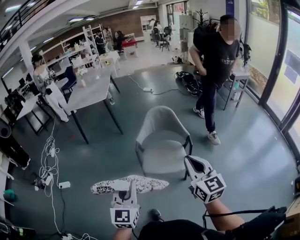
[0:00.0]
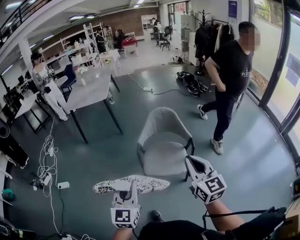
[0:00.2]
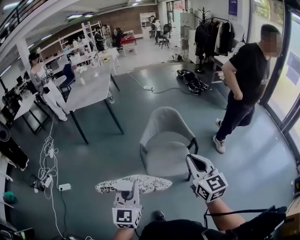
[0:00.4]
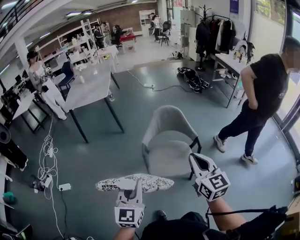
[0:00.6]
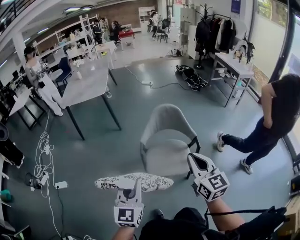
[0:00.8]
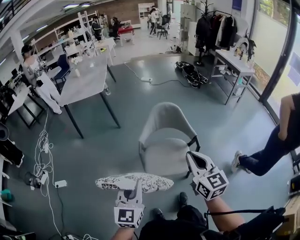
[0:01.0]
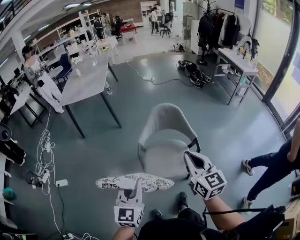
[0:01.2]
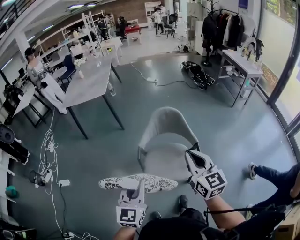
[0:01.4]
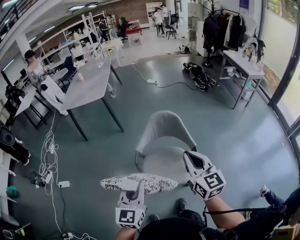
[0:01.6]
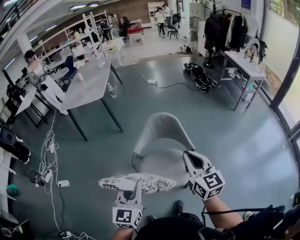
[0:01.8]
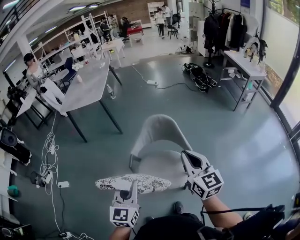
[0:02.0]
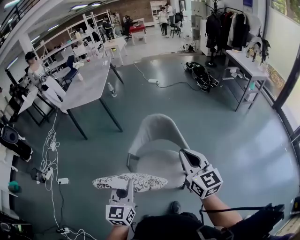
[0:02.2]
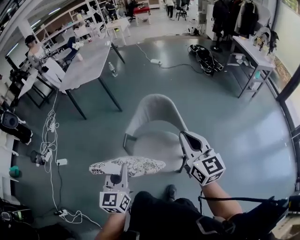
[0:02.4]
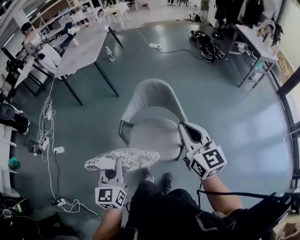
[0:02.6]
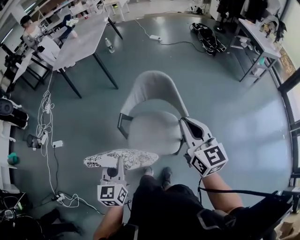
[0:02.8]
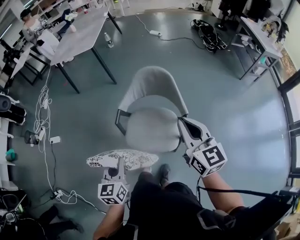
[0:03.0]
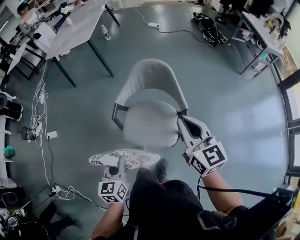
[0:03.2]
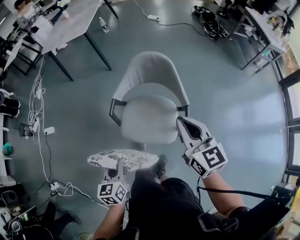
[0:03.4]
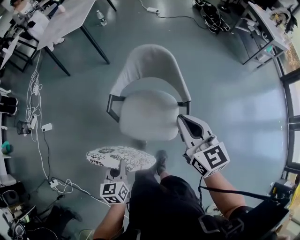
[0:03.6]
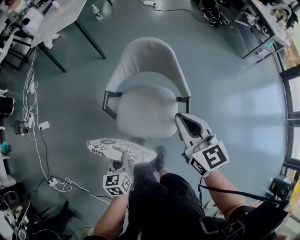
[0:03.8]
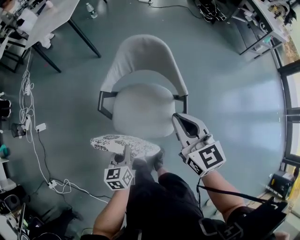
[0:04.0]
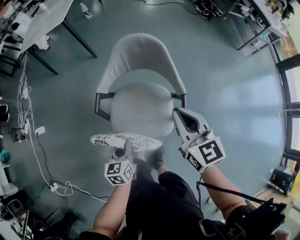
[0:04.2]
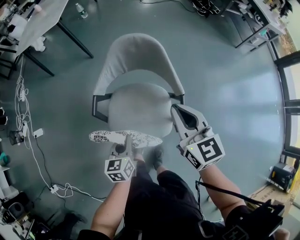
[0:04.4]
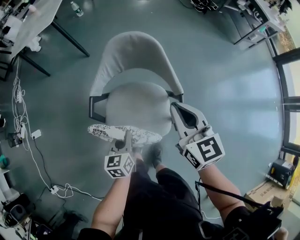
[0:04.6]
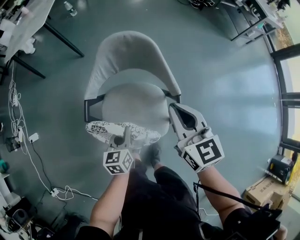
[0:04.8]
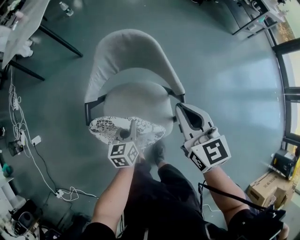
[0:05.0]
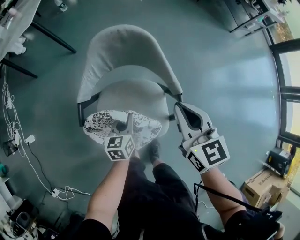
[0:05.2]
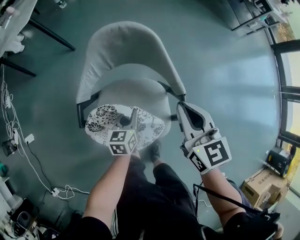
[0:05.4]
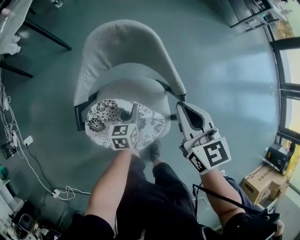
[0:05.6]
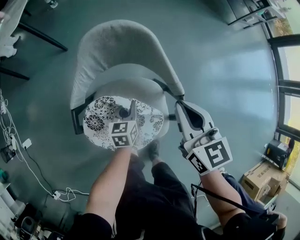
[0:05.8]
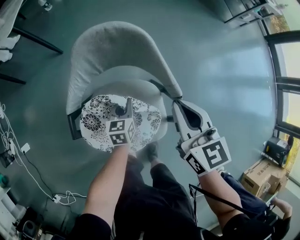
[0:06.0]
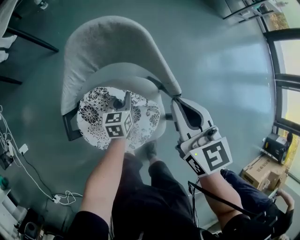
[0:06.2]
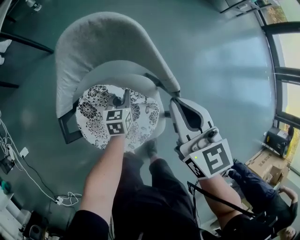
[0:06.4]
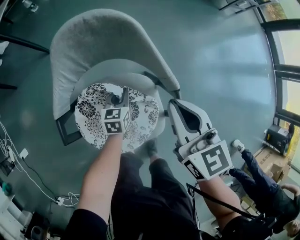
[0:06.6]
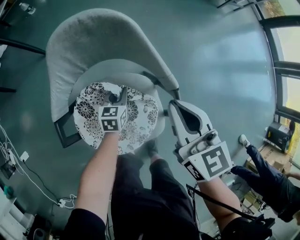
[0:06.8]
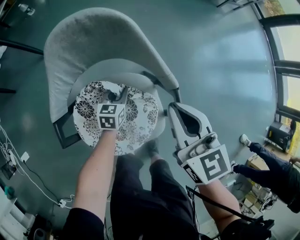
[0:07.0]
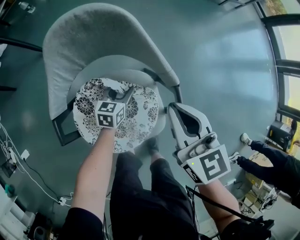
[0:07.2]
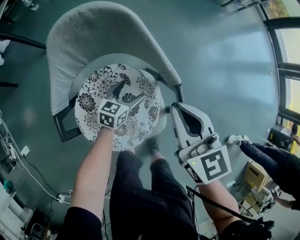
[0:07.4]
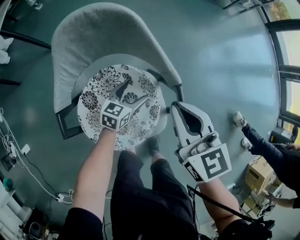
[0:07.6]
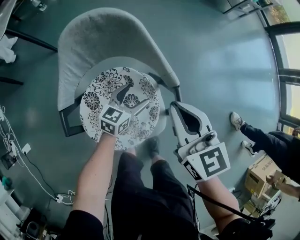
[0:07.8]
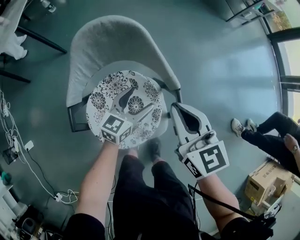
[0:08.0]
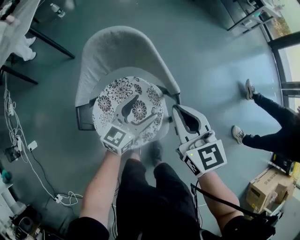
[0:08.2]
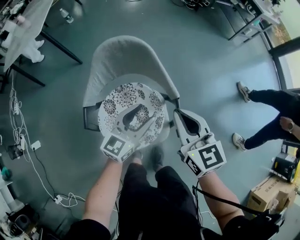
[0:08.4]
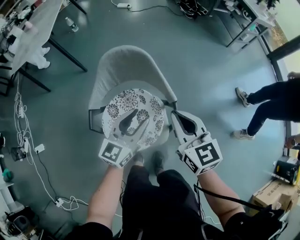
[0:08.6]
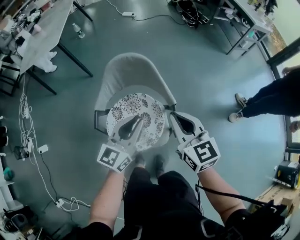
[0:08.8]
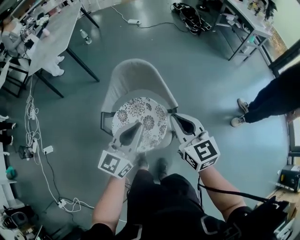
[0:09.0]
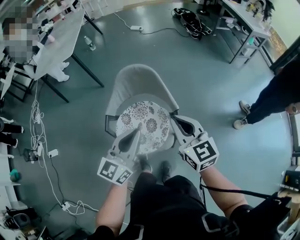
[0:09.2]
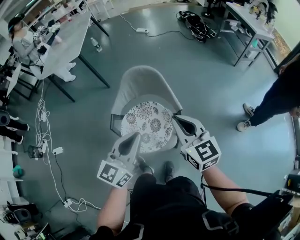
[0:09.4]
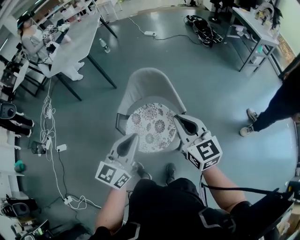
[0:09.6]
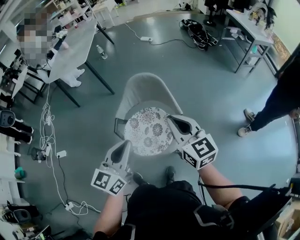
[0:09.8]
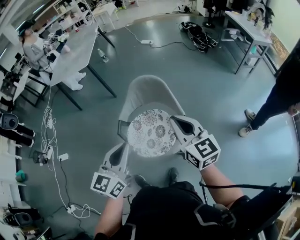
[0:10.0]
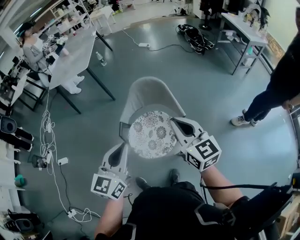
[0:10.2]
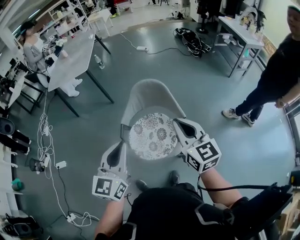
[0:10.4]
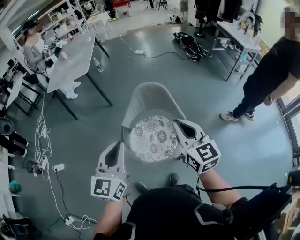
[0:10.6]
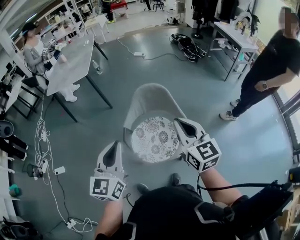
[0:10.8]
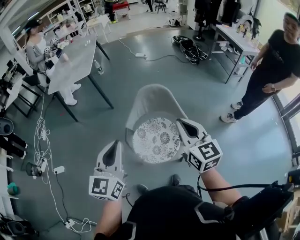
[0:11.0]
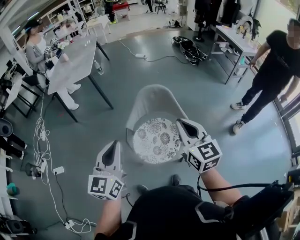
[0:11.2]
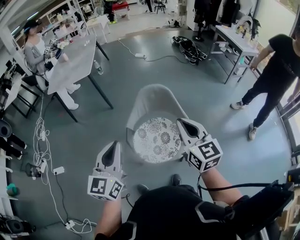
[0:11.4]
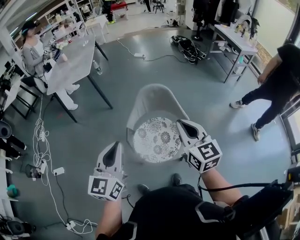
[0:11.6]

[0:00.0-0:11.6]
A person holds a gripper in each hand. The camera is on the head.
0:00.0 to 0:01.4: Both grippers move forward, approximately 15 cm.
0:01.4 to 0:02.8: The left gripper travels downward and to the right by approximately 10 cm, and turns by roughly 20 degrees; the right gripper is displaced to the right and forward by roughly 15 cm.
0:02.8 to 0:04.4: The right gripper moves downward and forward, roughly 15 cm; the left gripper shifts approximately 25 cm downward, and swivels some 20 degrees.
0:04.4 to 0:05.8: The right gripper is displaced downward and forward by some 10 cm; the left gripper shifts roughly 25 cm forward and downward.
0:05.8 to 0:07.2: The right gripper moves about 5 cm. The left gripper heads downward, covering about 10 cm, changes its angle by about 20 degrees, and opens up.
0:07.2 to 0:08.8: The left gripper shifts approximately 40 cm upward, points its fingers roughly 30 degrees further upward, and opens, then closes again, while the right gripper heads upward, covering roughly 15 cm.
0:08.8 to 0:10.2: The right gripper shifts roughly 15 cm upward and backward. Meanwhile the left gripper moves upward, backward and to the left, about 25 cm.
0:10.2 to 0:11.6: The right gripper shifts about 5 cm to the left; the left gripper travels to the left by about 10 cm.

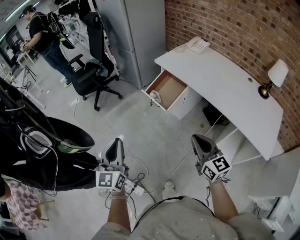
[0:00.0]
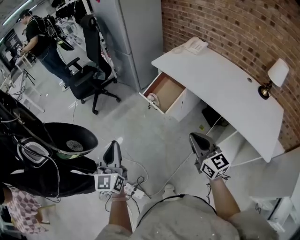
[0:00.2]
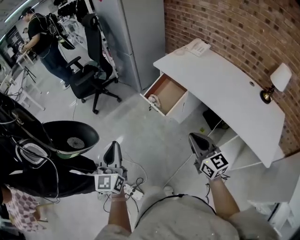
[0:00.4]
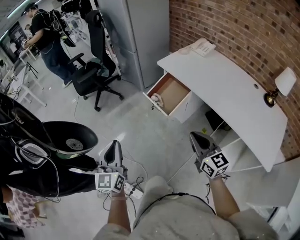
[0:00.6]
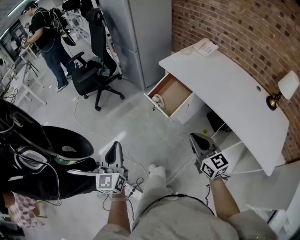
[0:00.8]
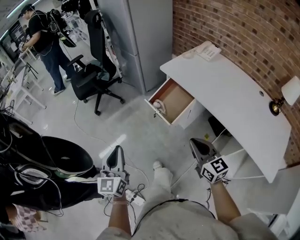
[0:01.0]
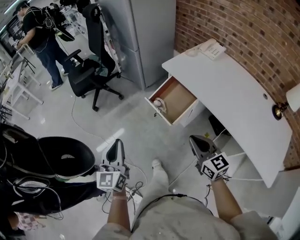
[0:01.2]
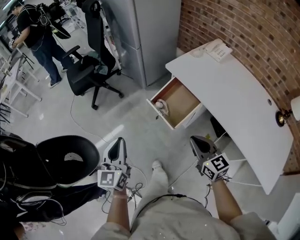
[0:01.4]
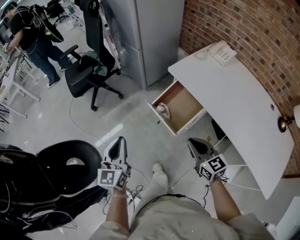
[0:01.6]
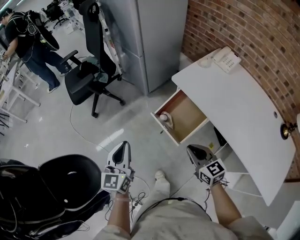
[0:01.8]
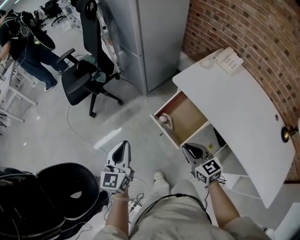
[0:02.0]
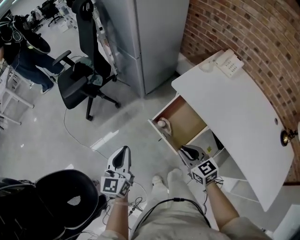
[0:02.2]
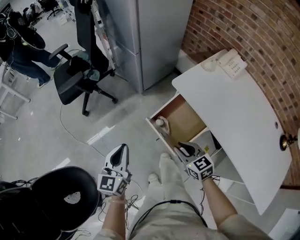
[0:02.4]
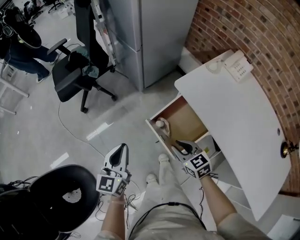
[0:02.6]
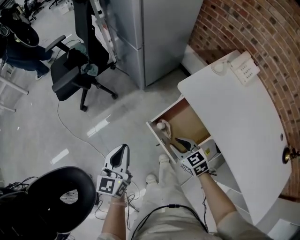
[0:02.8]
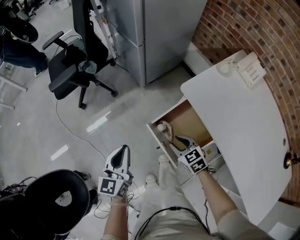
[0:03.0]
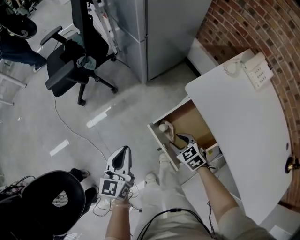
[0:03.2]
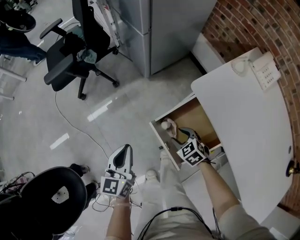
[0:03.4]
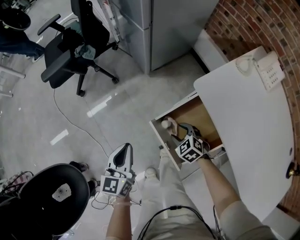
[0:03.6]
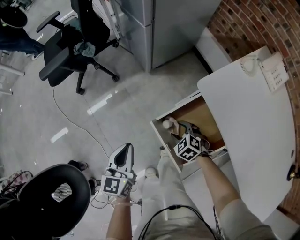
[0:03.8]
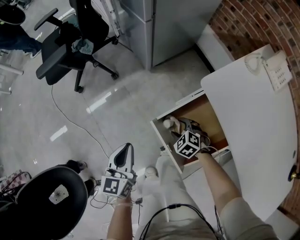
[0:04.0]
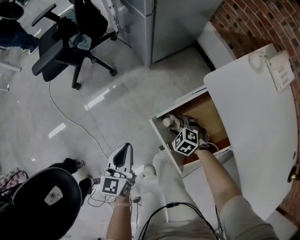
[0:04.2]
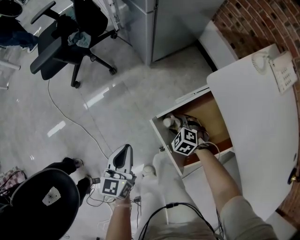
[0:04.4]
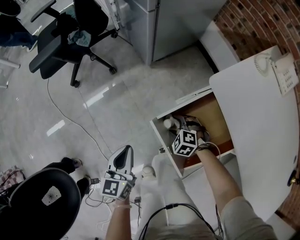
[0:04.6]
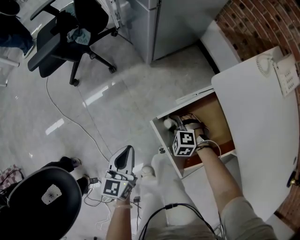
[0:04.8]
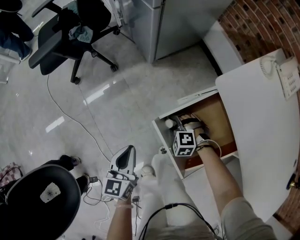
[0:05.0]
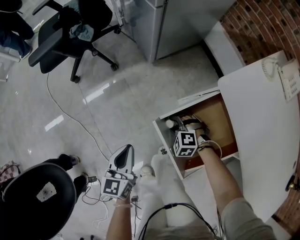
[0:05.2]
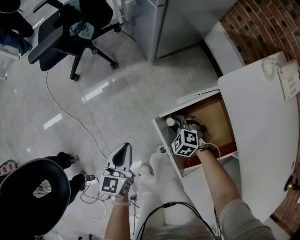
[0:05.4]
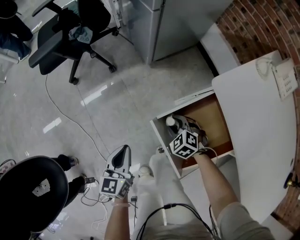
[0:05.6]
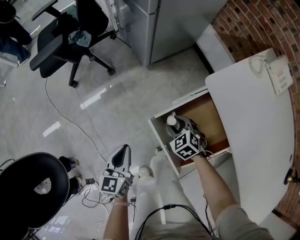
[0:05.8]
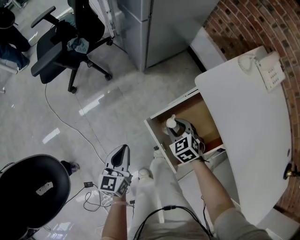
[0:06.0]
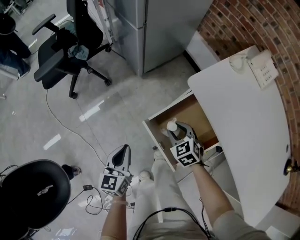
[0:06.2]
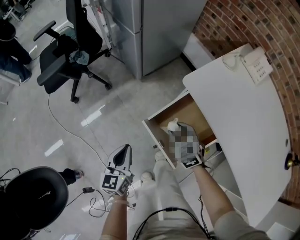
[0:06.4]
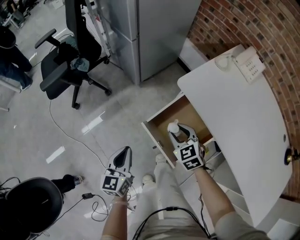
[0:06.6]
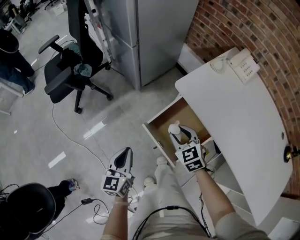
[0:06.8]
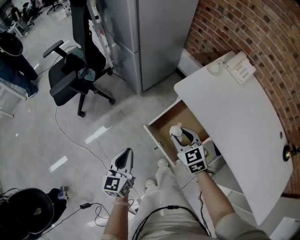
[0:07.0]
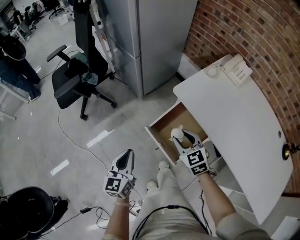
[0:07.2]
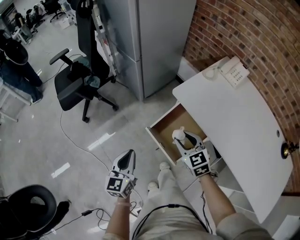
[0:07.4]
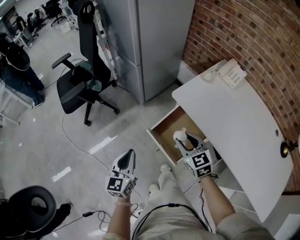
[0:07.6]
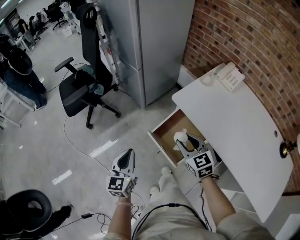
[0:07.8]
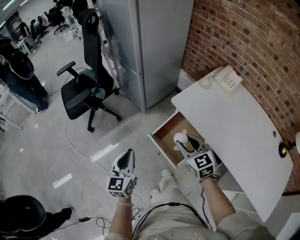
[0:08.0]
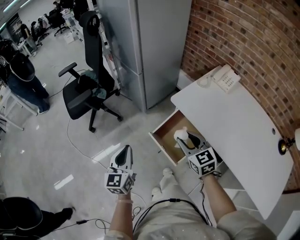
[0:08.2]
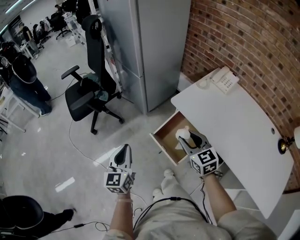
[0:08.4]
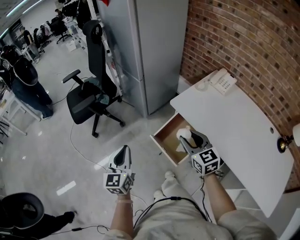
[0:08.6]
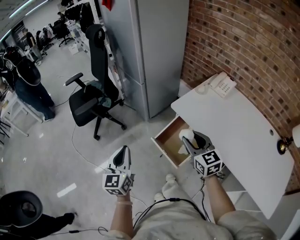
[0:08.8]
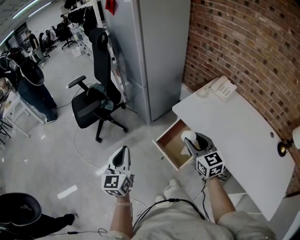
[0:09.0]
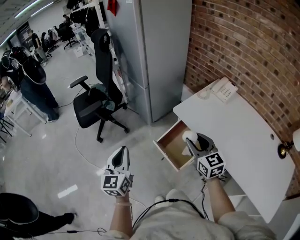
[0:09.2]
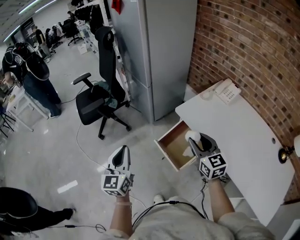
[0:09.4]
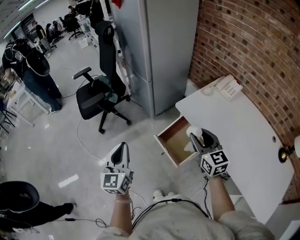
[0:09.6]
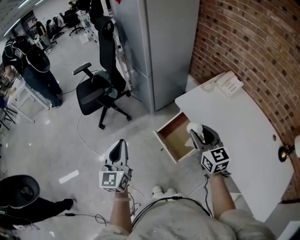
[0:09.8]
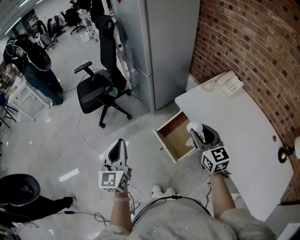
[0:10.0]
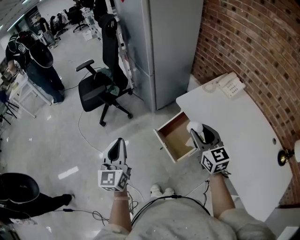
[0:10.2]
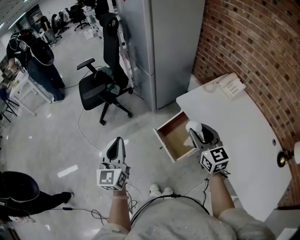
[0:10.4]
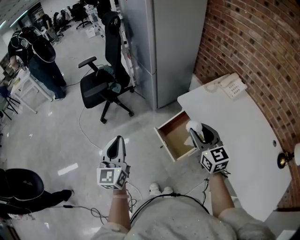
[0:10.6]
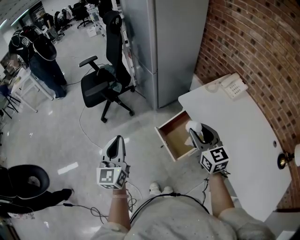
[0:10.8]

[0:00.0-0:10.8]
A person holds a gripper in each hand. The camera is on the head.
0:00.0 to 0:01.6: The grippers both shift forward by about 30 cm.
0:01.6 to 0:03.0: The grippers both shift forward and downward by some 25 cm. The right gripper rotates about 30 degrees, and opens its fingers.
0:03.0 to 0:04.6: The grippers both shift downward by some 20 cm. The right gripper twists roughly 40 degrees counterclockwise, seen from behind, and opens its fingers.
0:04.6 to 0:06.2: The right gripper travels upward by approximately 15 cm, turns by roughly 40 degrees, and closes up.
0:06.2 to 0:07.8: Both grippers travel together upward, some 20 cm. The right gripper changes its angle by approximately 30 degrees.
0:07.8 to 0:09.2: The grippers both shift upward by approximately 10 cm.
0:09.2 to 0:10.8: There are only small adjustments of the grippers.

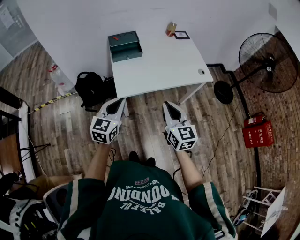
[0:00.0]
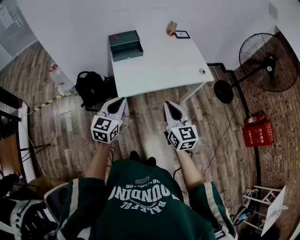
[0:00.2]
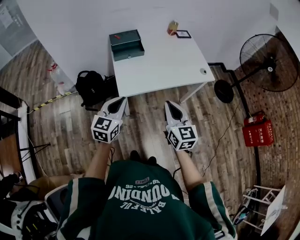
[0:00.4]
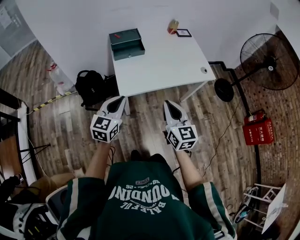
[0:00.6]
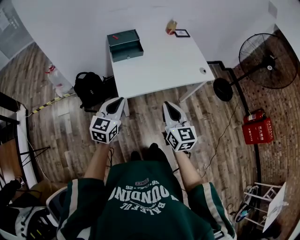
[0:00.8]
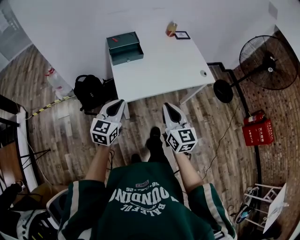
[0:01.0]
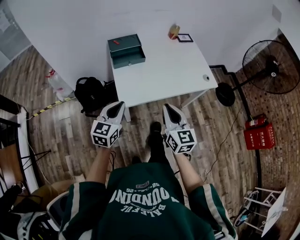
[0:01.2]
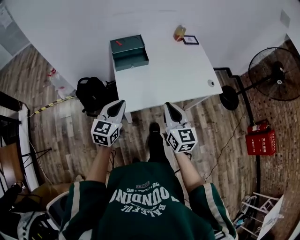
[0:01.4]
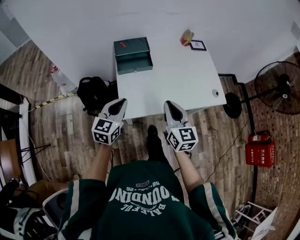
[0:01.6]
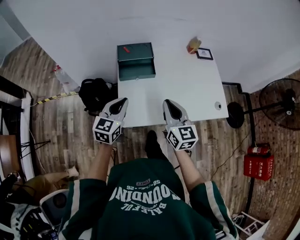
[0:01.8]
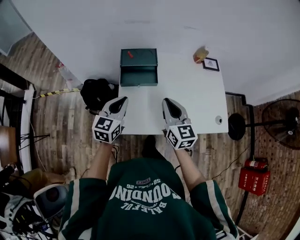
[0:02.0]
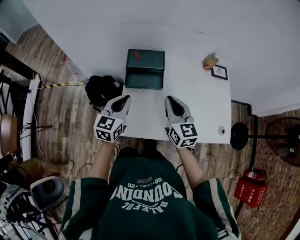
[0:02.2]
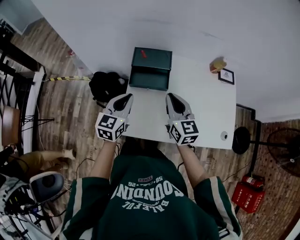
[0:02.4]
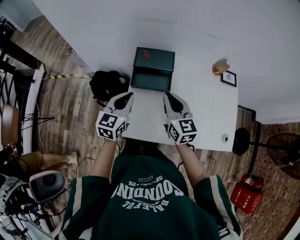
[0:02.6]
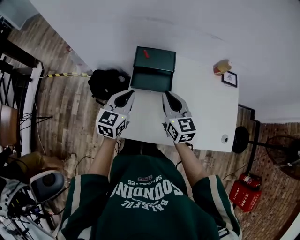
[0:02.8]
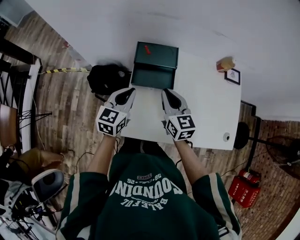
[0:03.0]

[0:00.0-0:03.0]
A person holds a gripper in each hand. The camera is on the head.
0:00.0 to 0:01.6: The two grippers go roughly 20 cm forward.
0:01.6 to 0:03.0: The grippers both shift forward by about 25 cm. The right gripper turns by roughly 20 degrees.
